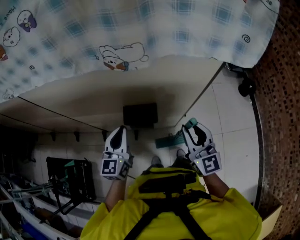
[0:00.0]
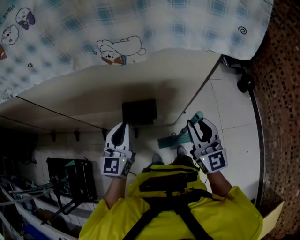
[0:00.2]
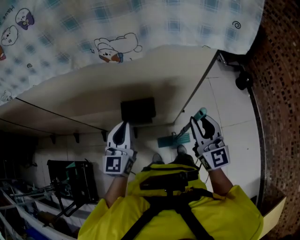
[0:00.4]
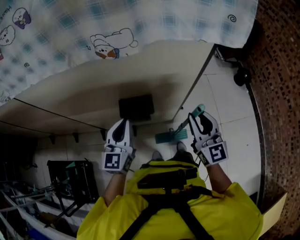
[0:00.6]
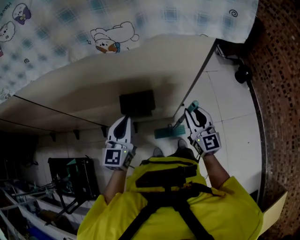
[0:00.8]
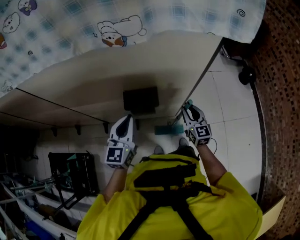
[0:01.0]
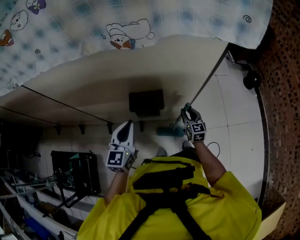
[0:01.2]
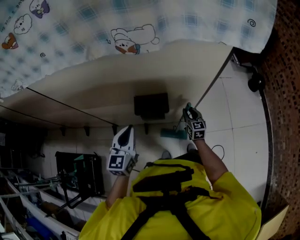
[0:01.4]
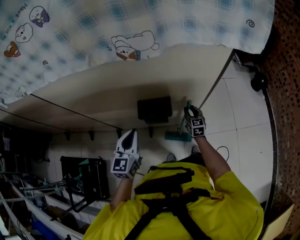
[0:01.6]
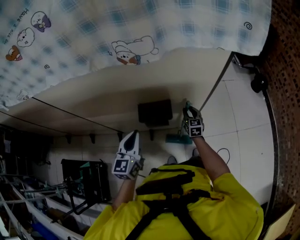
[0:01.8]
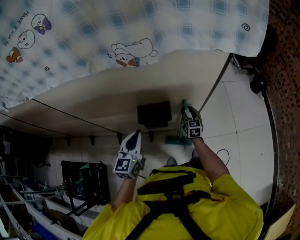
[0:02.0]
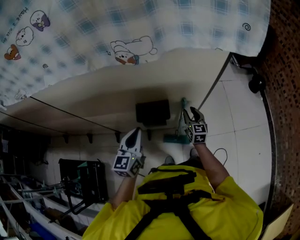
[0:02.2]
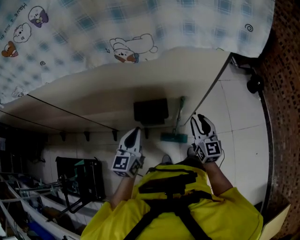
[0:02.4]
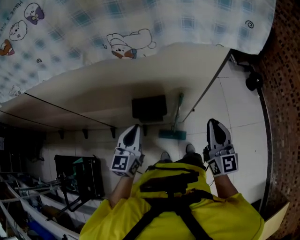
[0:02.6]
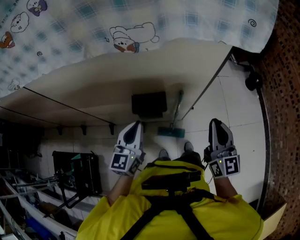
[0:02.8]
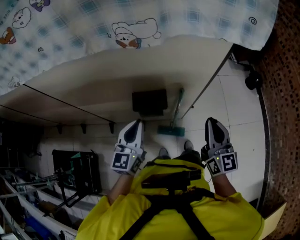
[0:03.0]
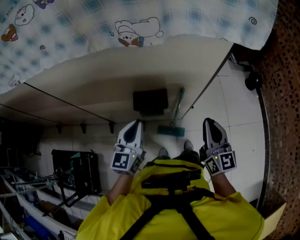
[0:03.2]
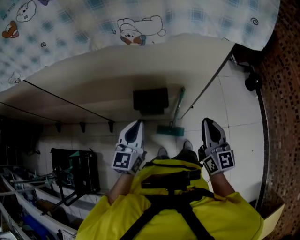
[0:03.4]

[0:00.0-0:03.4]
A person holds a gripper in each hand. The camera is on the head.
0:00.0 to 0:01.6: The left gripper ends up approximately 5 cm from where it was; the right gripper shifts roughly 30 cm downward and forward, and changes its angle by about 30 degrees.
0:01.6 to 0:03.4: The right gripper is displaced upward and backward by some 30 cm, turns by about 20 degrees, and closes up; the left gripper moves some 5 cm.

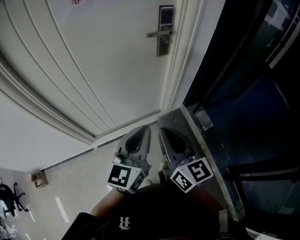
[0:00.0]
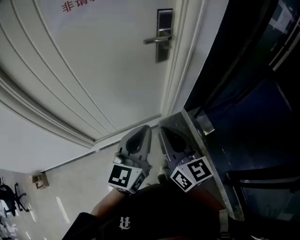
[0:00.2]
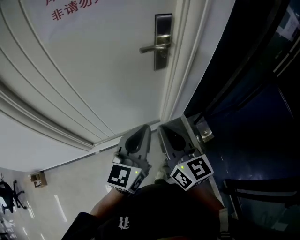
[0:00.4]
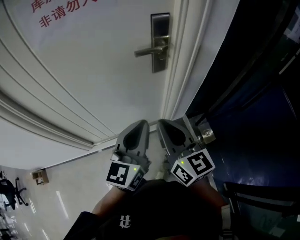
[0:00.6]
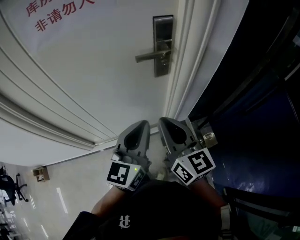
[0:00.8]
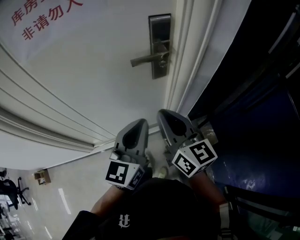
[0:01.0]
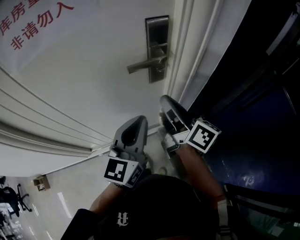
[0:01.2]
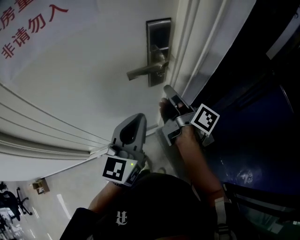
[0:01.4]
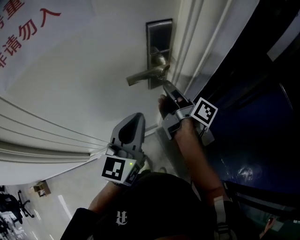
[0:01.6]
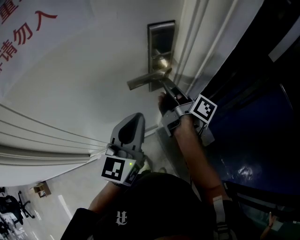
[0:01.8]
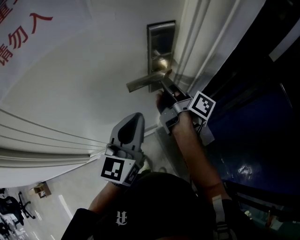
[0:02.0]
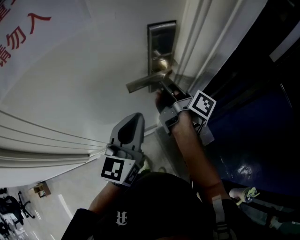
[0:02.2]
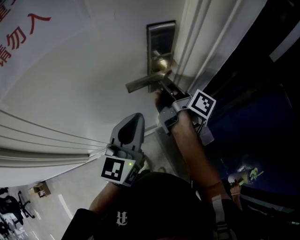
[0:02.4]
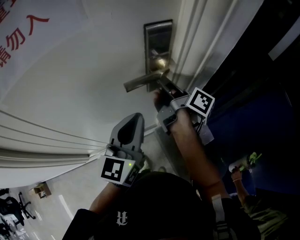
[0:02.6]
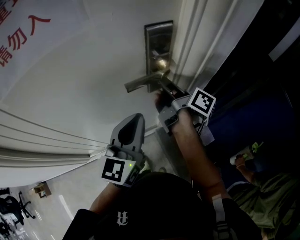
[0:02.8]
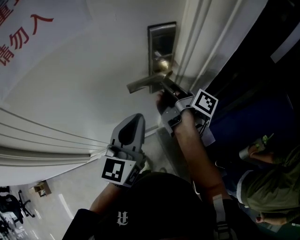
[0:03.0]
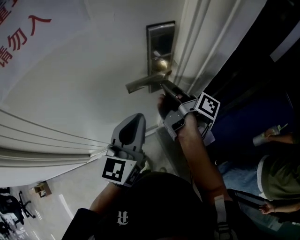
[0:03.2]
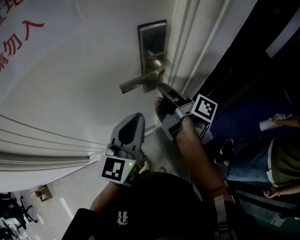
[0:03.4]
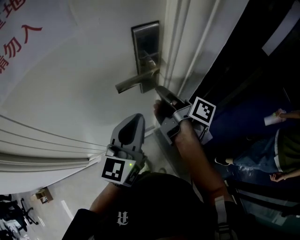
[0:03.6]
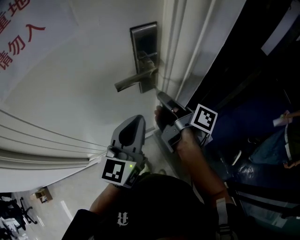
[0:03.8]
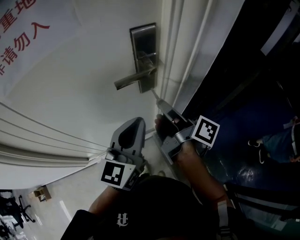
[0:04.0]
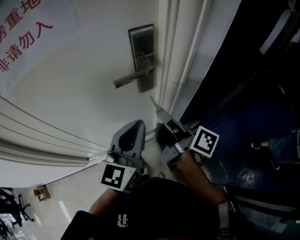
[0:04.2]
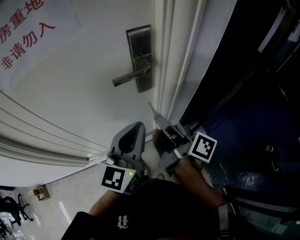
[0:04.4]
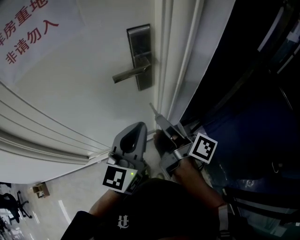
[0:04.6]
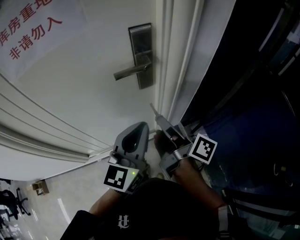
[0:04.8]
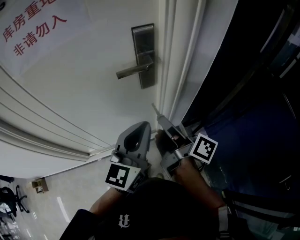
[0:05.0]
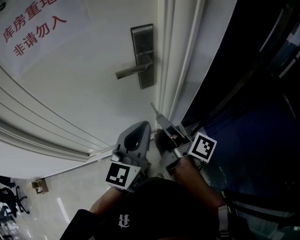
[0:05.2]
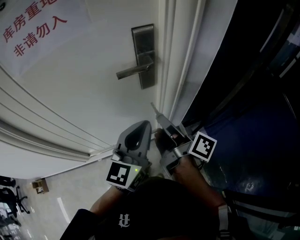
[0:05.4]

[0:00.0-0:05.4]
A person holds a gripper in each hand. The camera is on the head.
0:00.0 to 0:01.4: Both grippers travel together forward, roughly 30 cm. The right gripper twists roughly 50 degrees clockwise, seen from behind.
0:01.4 to 0:02.8: The right gripper is displaced forward by approximately 5 cm.
0:02.8 to 0:04.0: The right gripper travels backward by approximately 10 cm.
0:04.0 to 0:05.4: Both grippers travel together backward, some 5 cm.

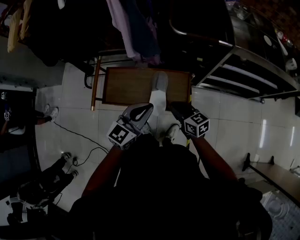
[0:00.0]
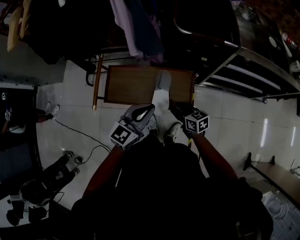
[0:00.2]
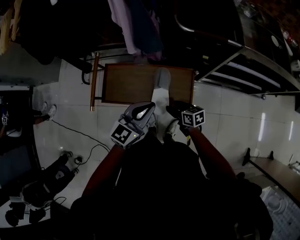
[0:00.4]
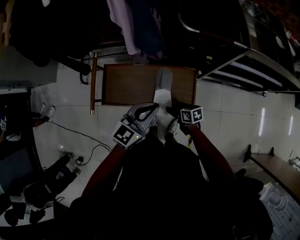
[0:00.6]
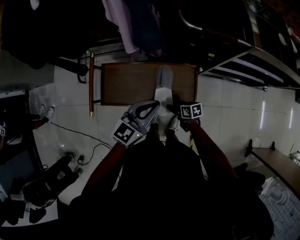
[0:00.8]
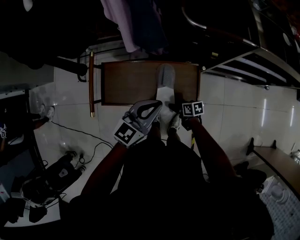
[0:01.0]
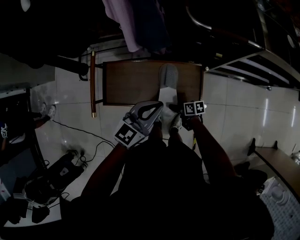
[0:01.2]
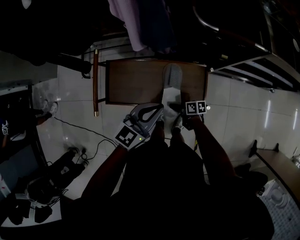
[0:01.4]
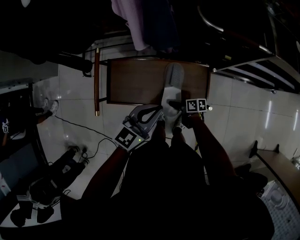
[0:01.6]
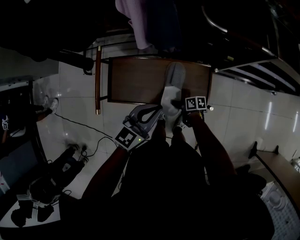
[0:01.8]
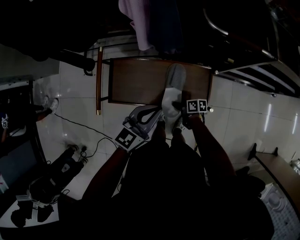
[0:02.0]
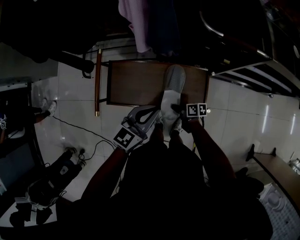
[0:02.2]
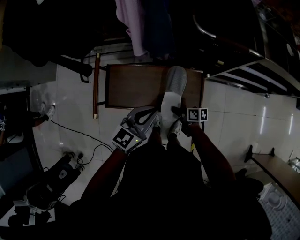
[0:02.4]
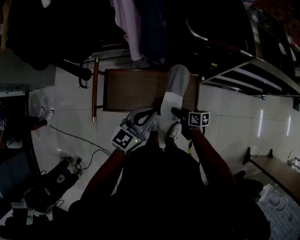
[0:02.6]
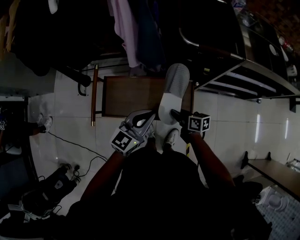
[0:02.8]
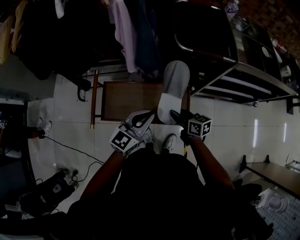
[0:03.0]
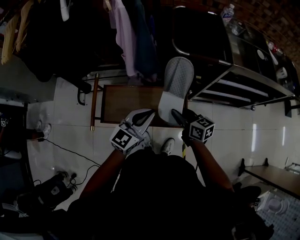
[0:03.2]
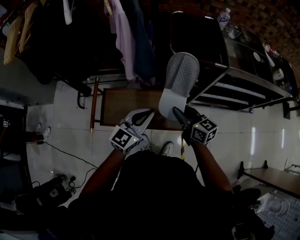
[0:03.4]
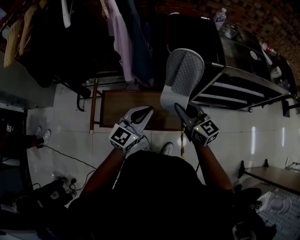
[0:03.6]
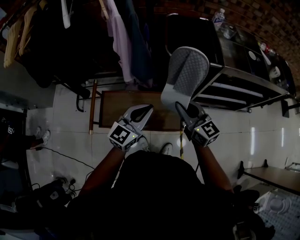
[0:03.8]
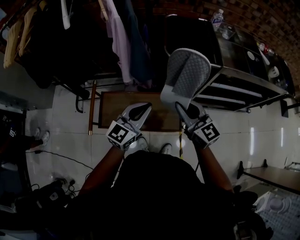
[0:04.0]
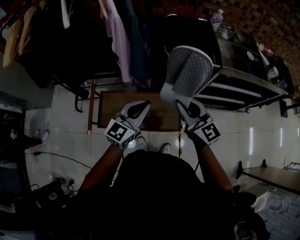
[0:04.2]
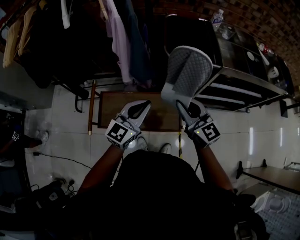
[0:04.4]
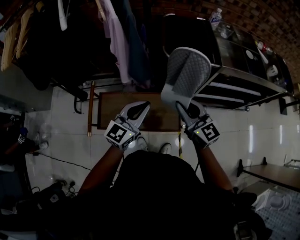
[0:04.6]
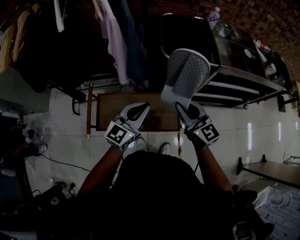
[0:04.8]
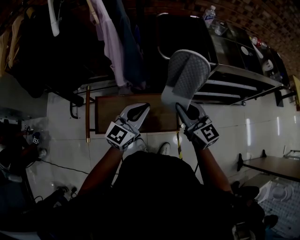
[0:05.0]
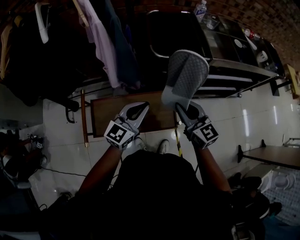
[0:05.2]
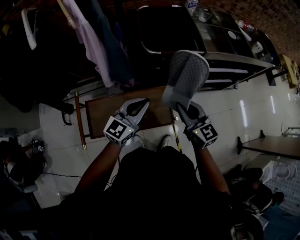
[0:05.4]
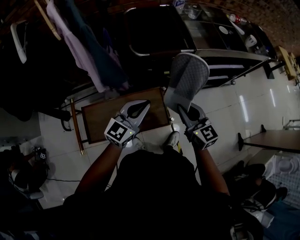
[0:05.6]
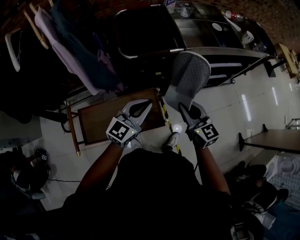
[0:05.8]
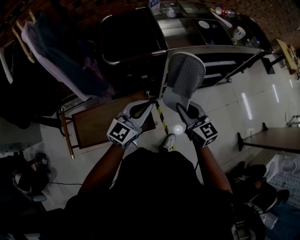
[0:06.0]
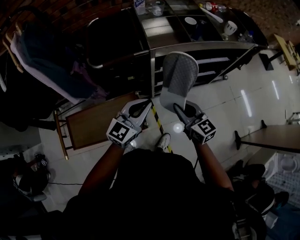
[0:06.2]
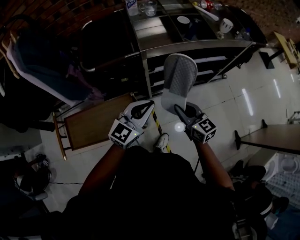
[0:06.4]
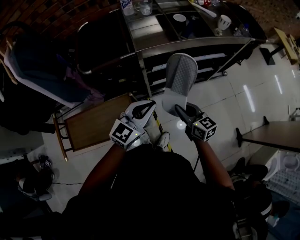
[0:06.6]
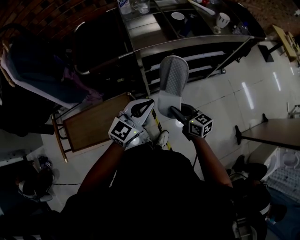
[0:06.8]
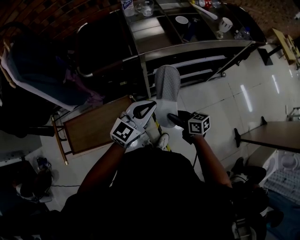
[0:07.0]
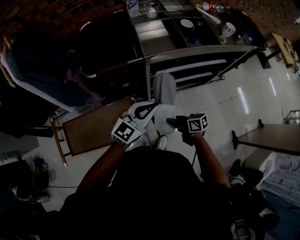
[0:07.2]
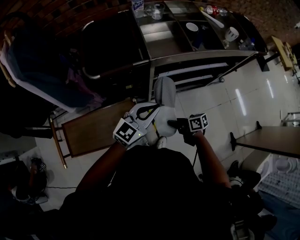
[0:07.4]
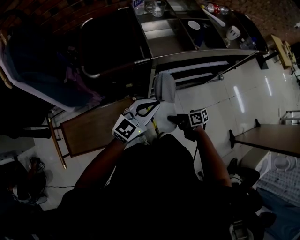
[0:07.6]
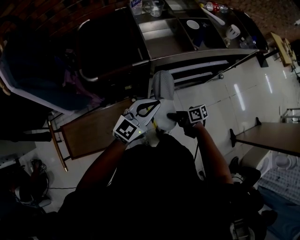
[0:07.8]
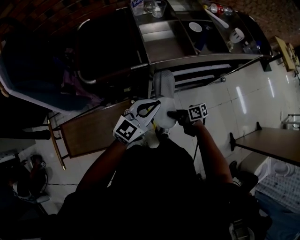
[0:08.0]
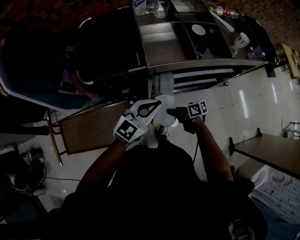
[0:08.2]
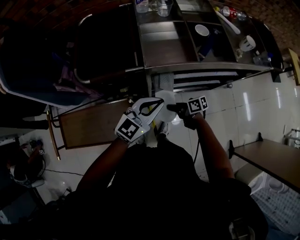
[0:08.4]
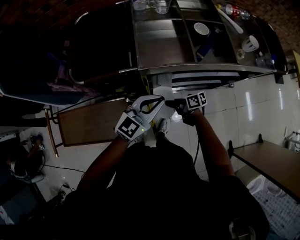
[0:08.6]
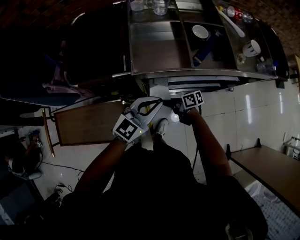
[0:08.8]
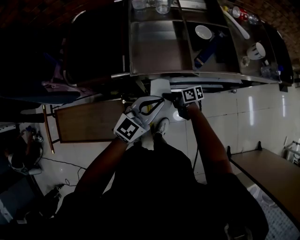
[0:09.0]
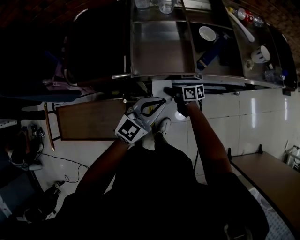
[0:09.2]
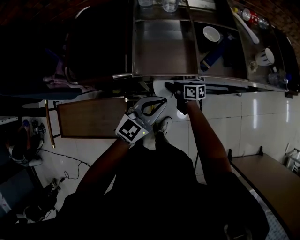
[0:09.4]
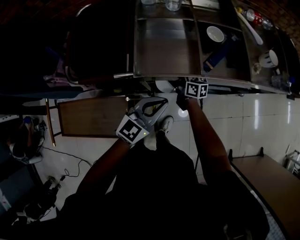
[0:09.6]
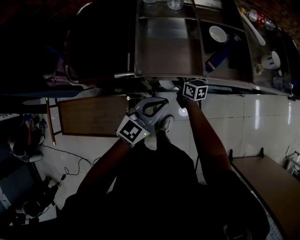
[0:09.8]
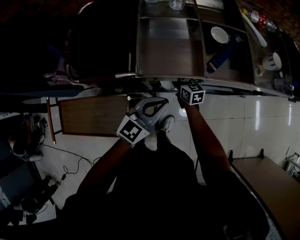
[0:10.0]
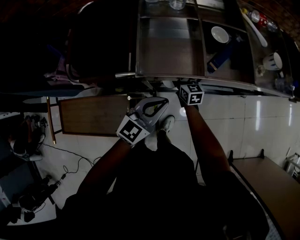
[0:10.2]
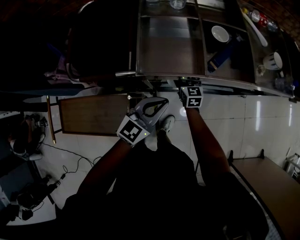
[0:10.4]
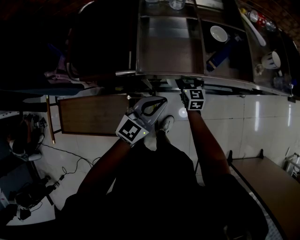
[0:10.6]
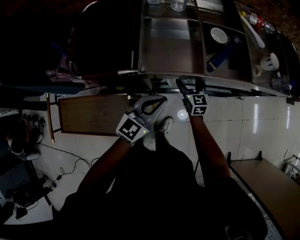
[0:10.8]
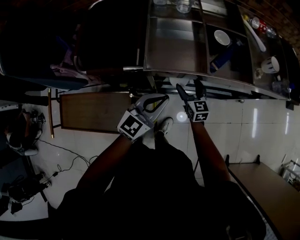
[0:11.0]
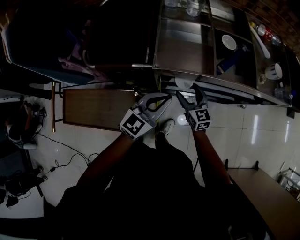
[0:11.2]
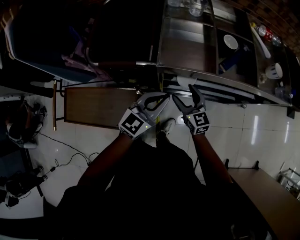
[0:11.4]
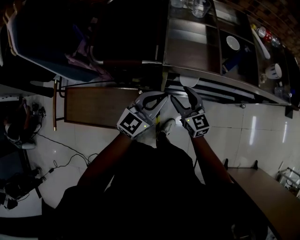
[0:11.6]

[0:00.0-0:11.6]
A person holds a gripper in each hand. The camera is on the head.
0:00.0 to 0:01.4: The left gripper is displaced downward and forward by roughly 10 cm, while the right gripper moves downward, roughly 25 cm, rotates around the line of its fingers by approximately 40 degrees, clockwise from behind, and opens up.
0:01.4 to 0:02.8: The right gripper travels upward by roughly 20 cm, swivels about 20 degrees, and closes its fingers.
0:02.8 to 0:04.4: The left gripper heads upward, covering some 10 cm. Meanwhile the right gripper shifts roughly 30 cm upward, and twists approximately 50 degrees counterclockwise, seen from behind.
0:04.4 to 0:05.8: The left gripper is displaced to the right by some 15 cm; the right gripper shifts approximately 20 cm to the right and downward, and turns by approximately 20 degrees.
0:05.8 to 0:07.2: The right gripper is displaced downward and to the right by some 25 cm, and changes its angle by roughly 60 degrees. Meanwhile the left gripper shifts about 20 cm to the right.
0:07.2 to 0:08.8: The right gripper changes place by roughly 20 cm, while the left gripper shifts by about 15 cm.
0:08.8 to 0:10.2: The right gripper shifts by about 15 cm, swivels approximately 50 degrees, and opens its fingers.
0:10.2 to 0:11.6: The left gripper heads to the left, covering about 5 cm; the right gripper travels backward and upward by roughly 20 cm, and turns by approximately 20 degrees.

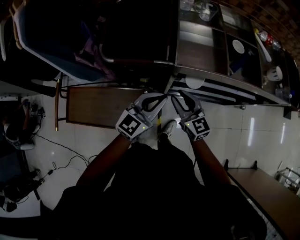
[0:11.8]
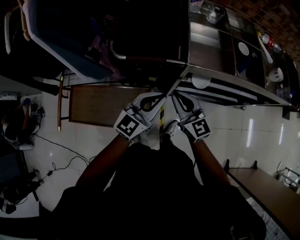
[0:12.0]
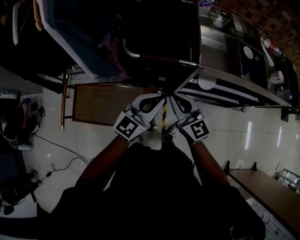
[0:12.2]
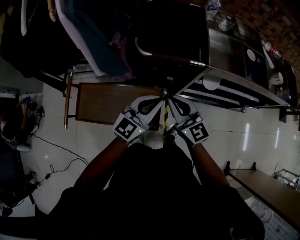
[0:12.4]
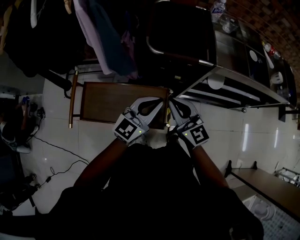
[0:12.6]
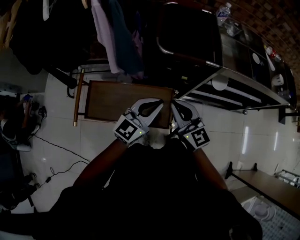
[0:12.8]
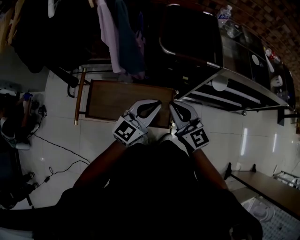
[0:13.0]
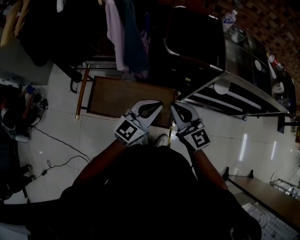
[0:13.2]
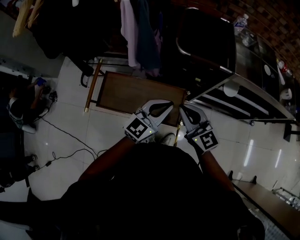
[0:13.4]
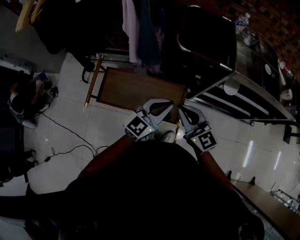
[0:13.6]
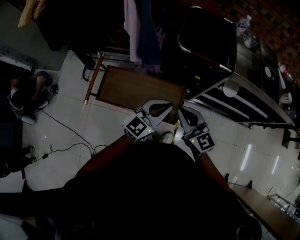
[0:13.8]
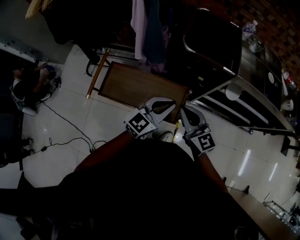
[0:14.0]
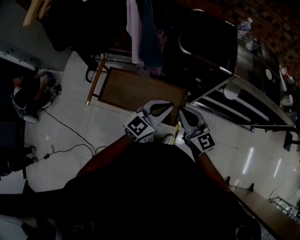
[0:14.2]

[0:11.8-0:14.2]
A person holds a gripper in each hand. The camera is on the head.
0:11.8 to 0:13.0: Both grippers travel together to the left and backward, about 30 cm. The right gripper closes up.
0:13.0 to 0:14.2: The right gripper shifts by some 5 cm.
